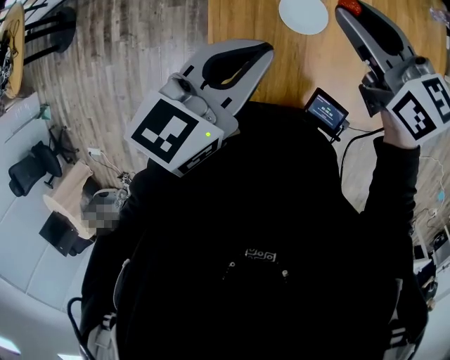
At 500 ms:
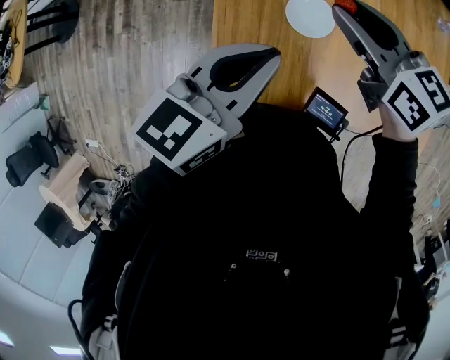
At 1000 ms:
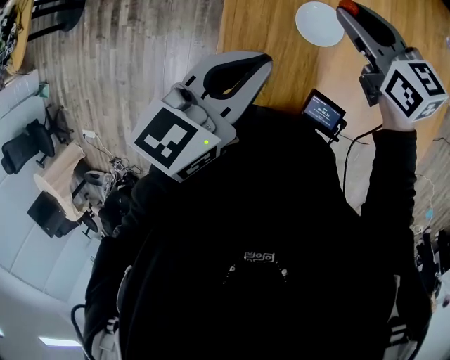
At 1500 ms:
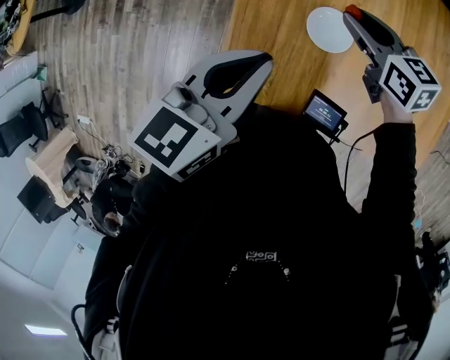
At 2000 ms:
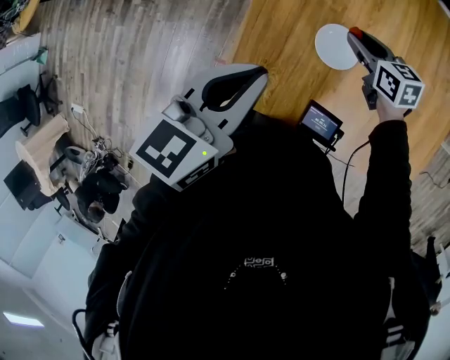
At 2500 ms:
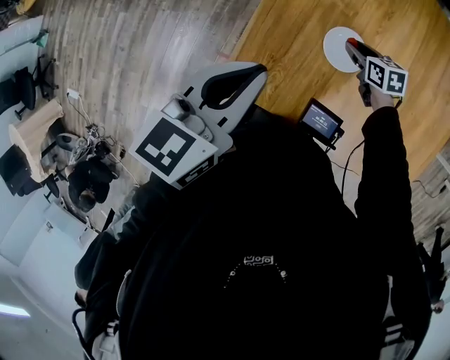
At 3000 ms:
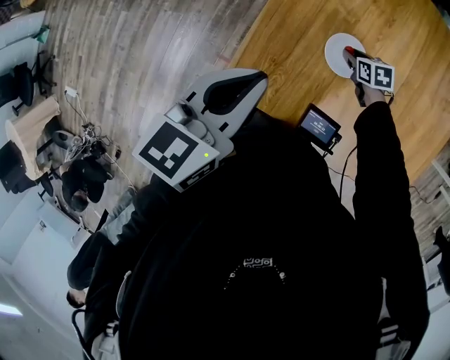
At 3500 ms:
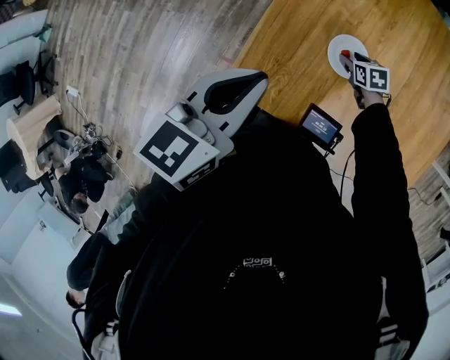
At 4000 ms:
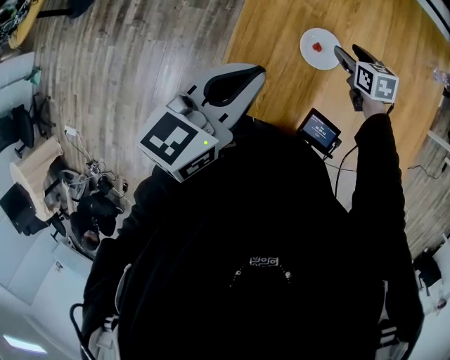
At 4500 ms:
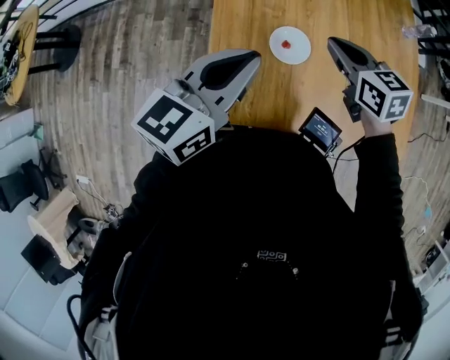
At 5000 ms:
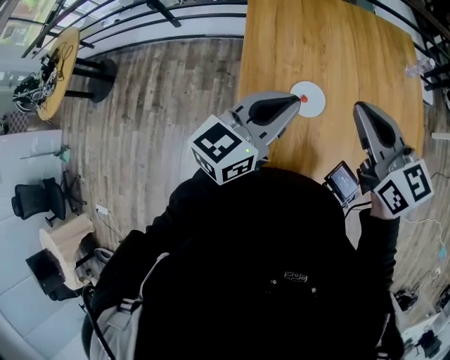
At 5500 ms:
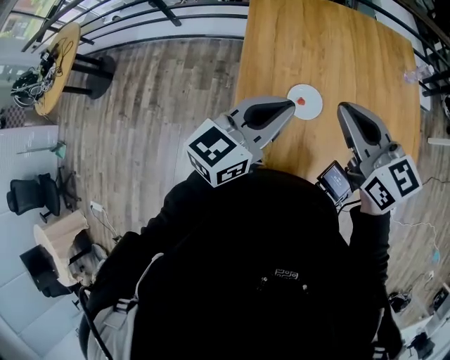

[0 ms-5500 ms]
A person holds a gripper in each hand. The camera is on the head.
0 ms to 2000 ms: The right gripper is displaced downward by some 15 cm, and rotates roughly 20 degrees. Meanwhile the left gripper moves backward, roughly 5 cm.
2000 ms to 3500 ms: The right gripper is displaced downward by approximately 20 cm, swivels roughly 20 degrees, and opens.
3500 ms to 5500 ms: The left gripper moves to the right, forward and upward, about 10 cm, and turns by some 30 degrees; the right gripper shifts roughly 40 cm upward, tilts its fingers roughly 50 degrees upward, and closes.

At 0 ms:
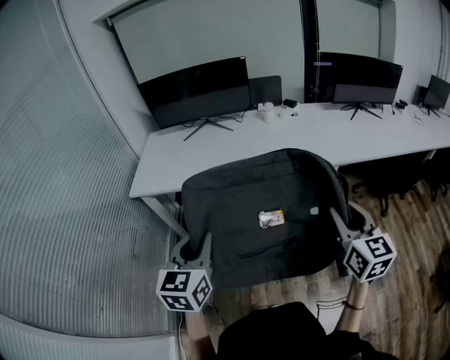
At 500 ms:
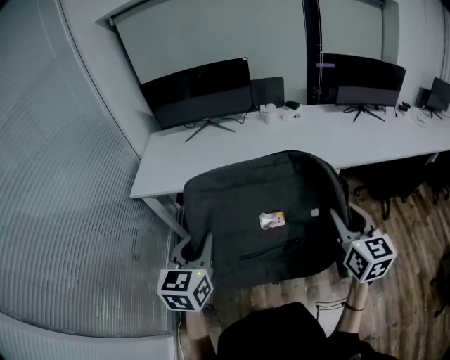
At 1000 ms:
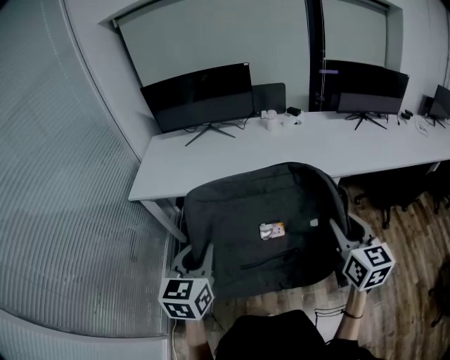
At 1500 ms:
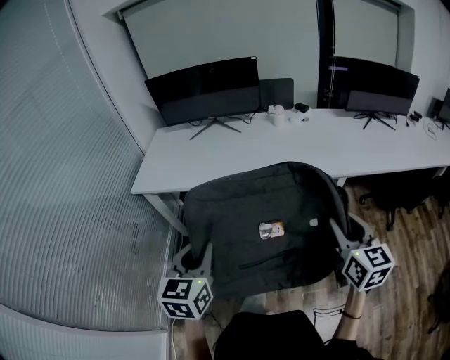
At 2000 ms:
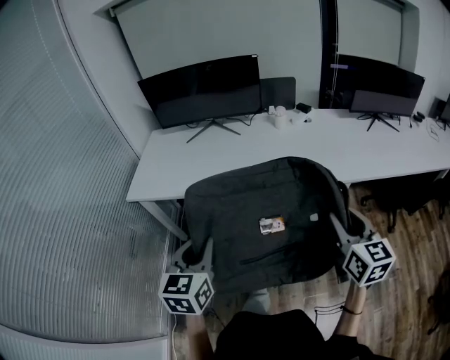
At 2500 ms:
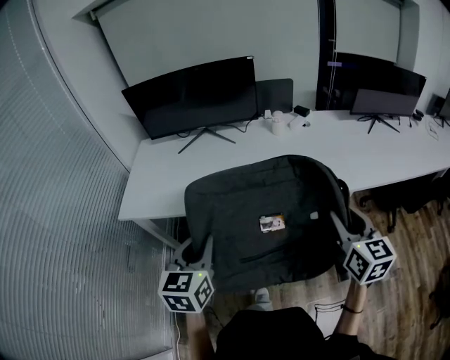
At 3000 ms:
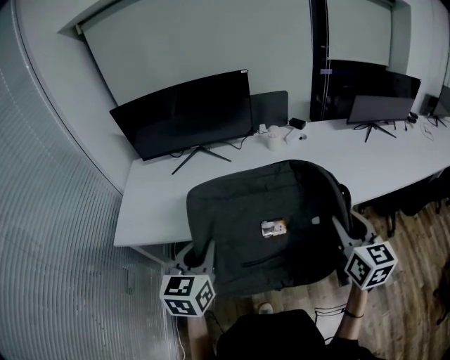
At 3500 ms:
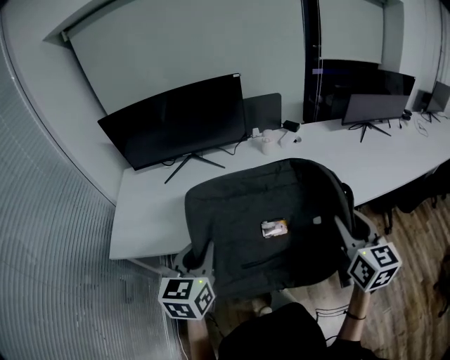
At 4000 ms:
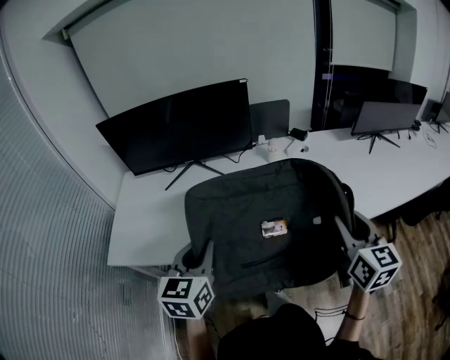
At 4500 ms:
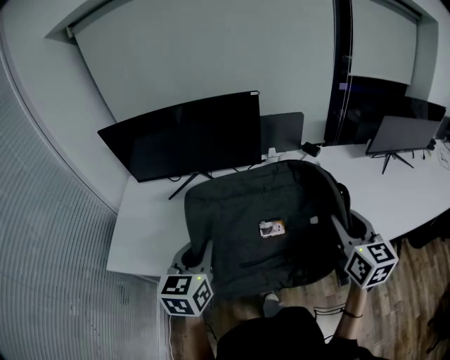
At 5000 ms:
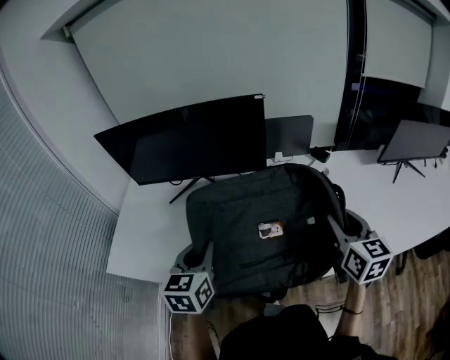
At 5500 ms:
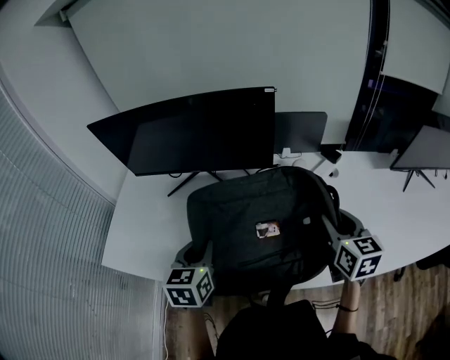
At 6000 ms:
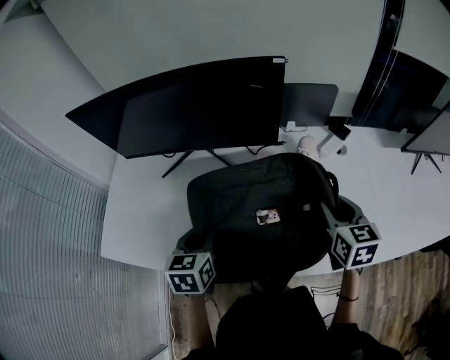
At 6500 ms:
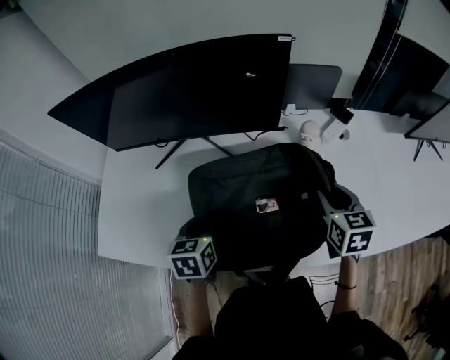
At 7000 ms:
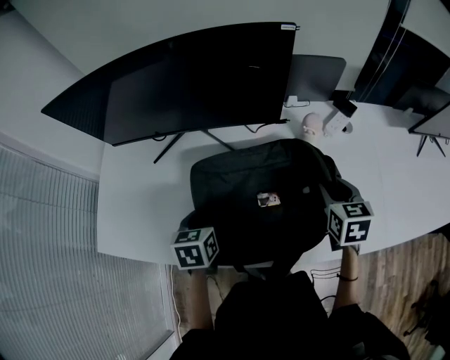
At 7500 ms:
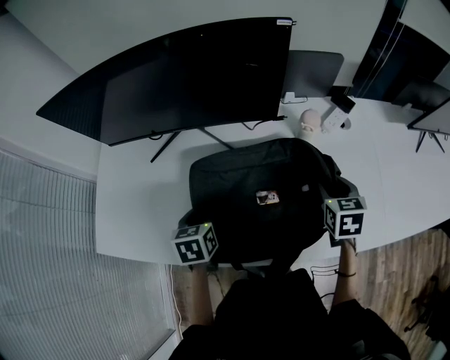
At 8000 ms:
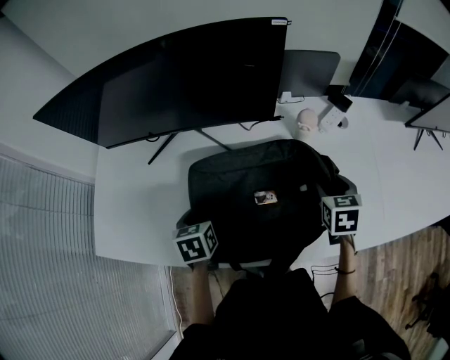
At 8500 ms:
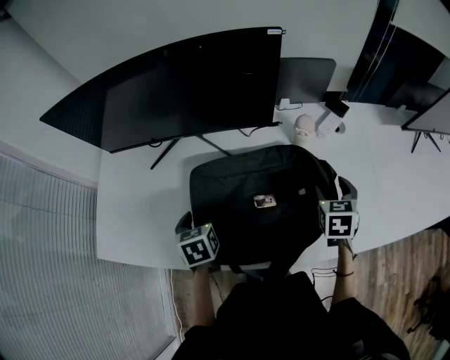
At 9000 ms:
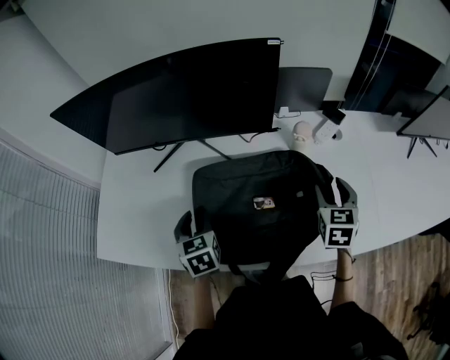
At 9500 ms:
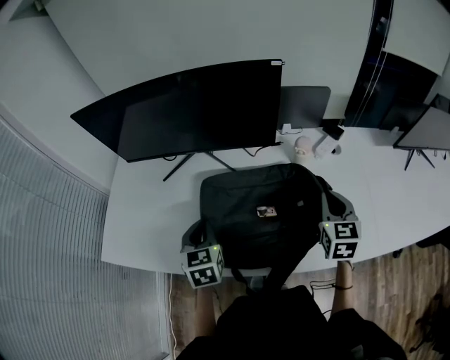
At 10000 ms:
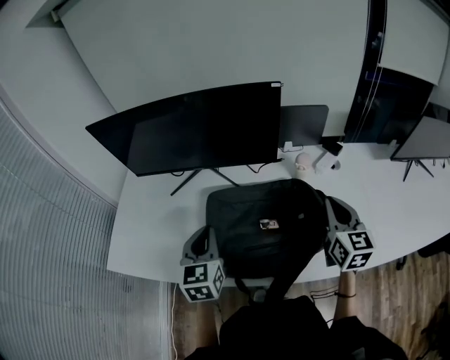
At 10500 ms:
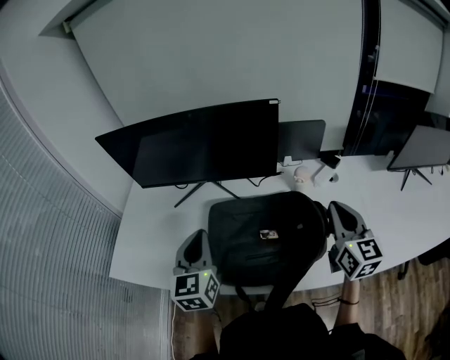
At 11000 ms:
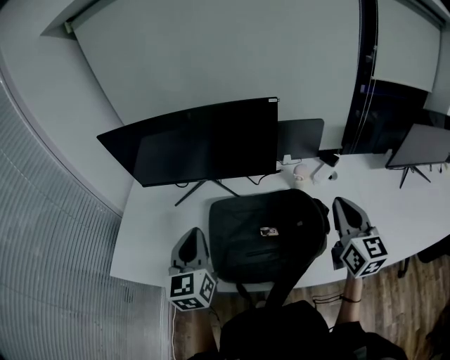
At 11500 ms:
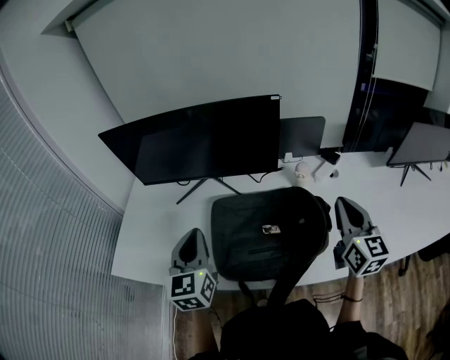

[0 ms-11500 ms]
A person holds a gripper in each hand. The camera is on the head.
0 ms to 2000 ms: Both grippers travel together forward, roughly 10 cm.
2000 ms to 4000 ms: Both grippers move forward, approximately 25 cm.
4000 ms to 6000 ms: The left gripper moves forward and downward, roughly 25 cm, and swivels about 20 degrees; the right gripper is displaced forward by some 30 cm, and rotates approximately 20 degrees.
6000 ms to 7500 ms: Both grippers travel together downward, about 10 cm. The left gripper opens.
7500 ms to 9500 ms: The grippers both shift upward by about 10 cm. The left gripper turns by some 20 degrees, and closes, while the right gripper swivels approximately 20 degrees, and closes up.
9500 ms to 11500 ms: The left gripper shifts roughly 15 cm upward, and changes its angle by about 20 degrees. The right gripper is displaced upward and backward by some 15 cm, and turns by approximately 30 degrees.

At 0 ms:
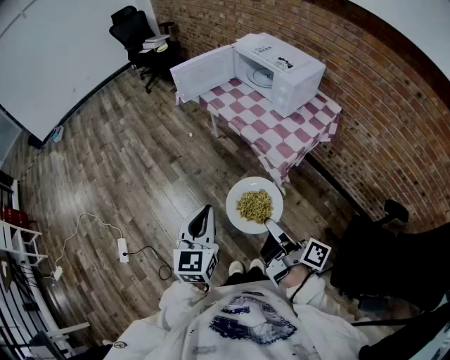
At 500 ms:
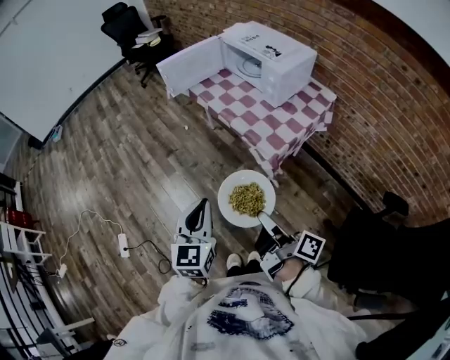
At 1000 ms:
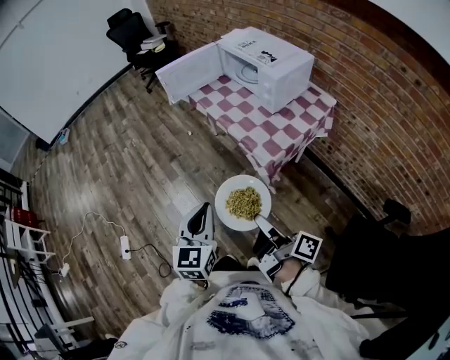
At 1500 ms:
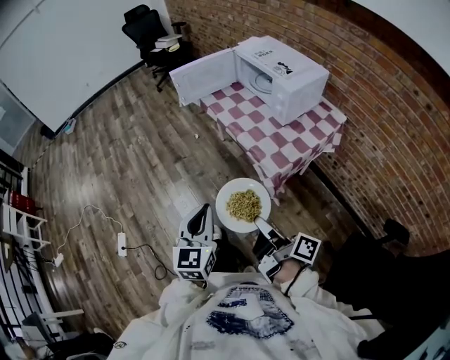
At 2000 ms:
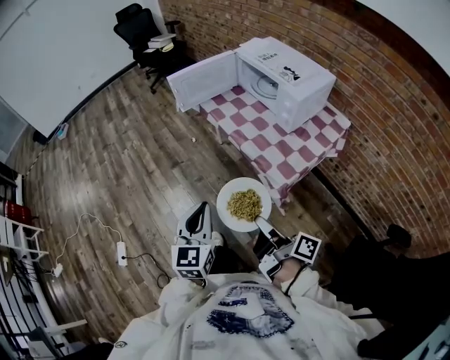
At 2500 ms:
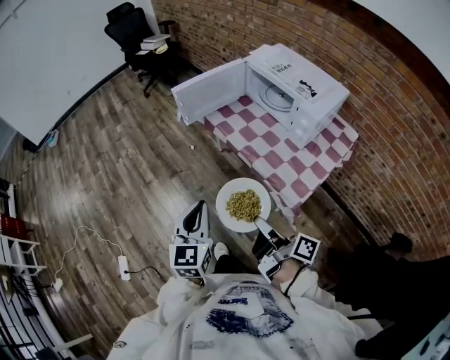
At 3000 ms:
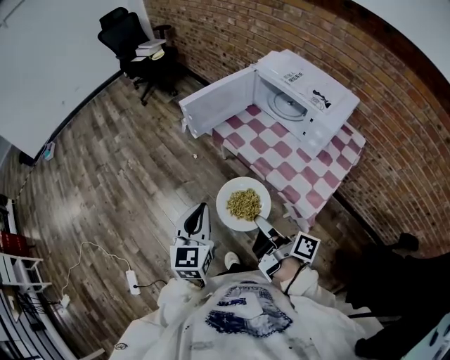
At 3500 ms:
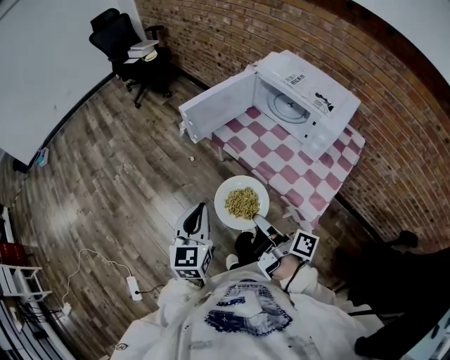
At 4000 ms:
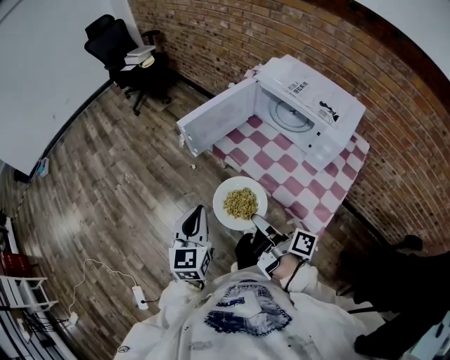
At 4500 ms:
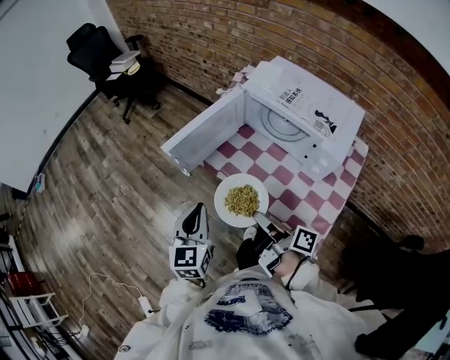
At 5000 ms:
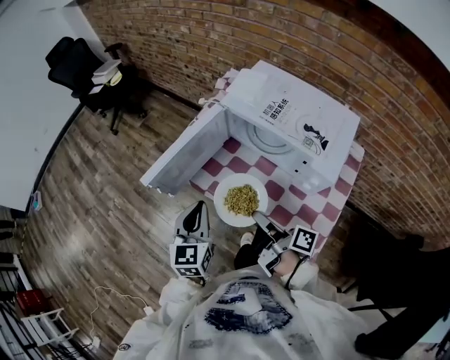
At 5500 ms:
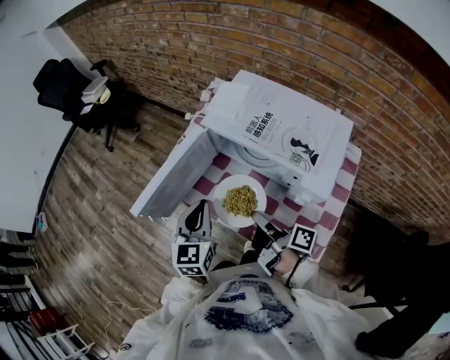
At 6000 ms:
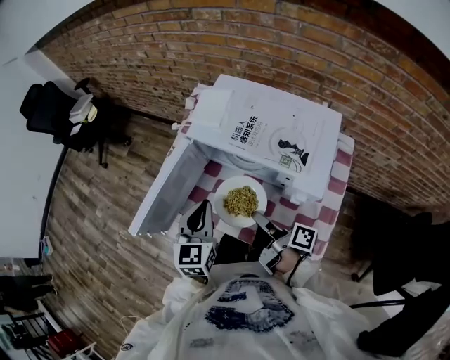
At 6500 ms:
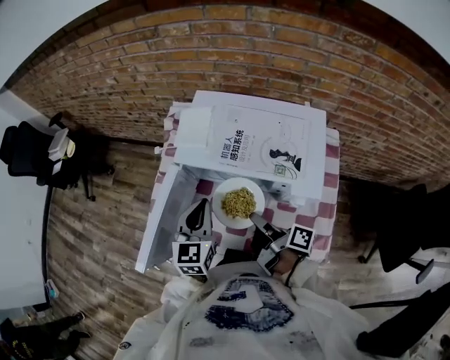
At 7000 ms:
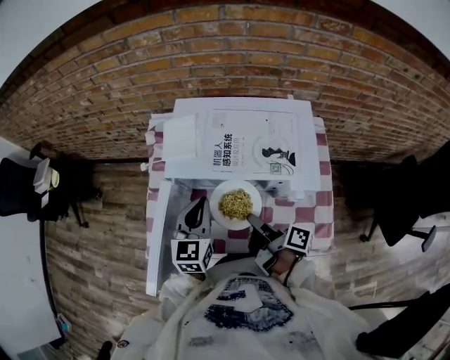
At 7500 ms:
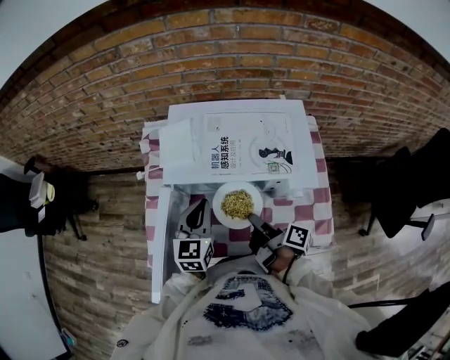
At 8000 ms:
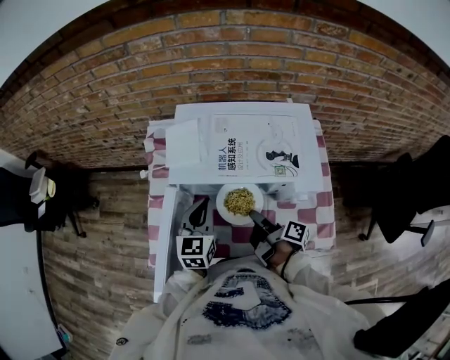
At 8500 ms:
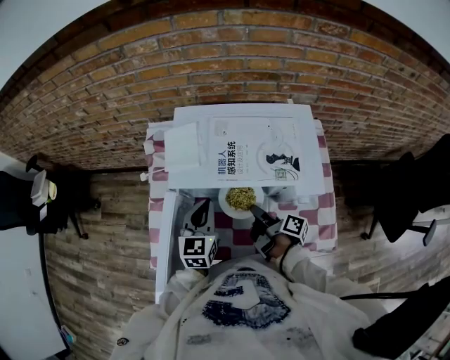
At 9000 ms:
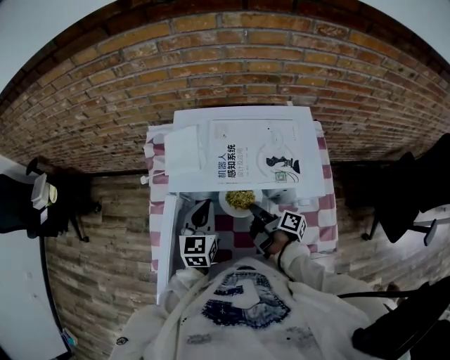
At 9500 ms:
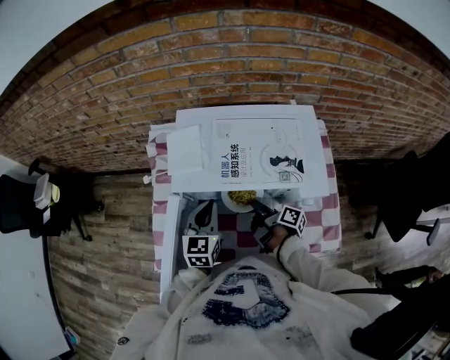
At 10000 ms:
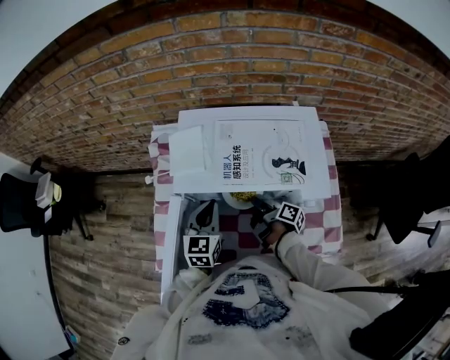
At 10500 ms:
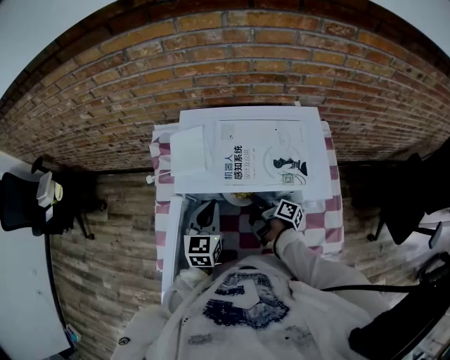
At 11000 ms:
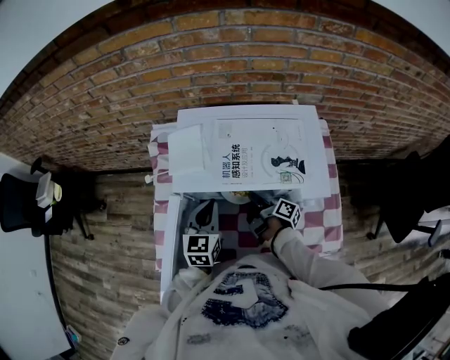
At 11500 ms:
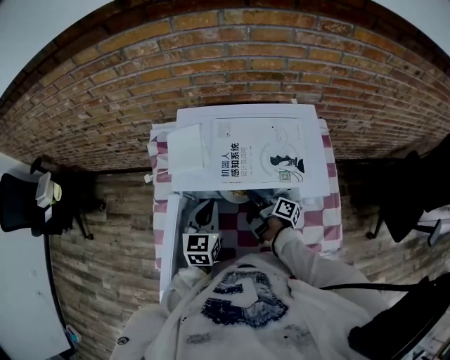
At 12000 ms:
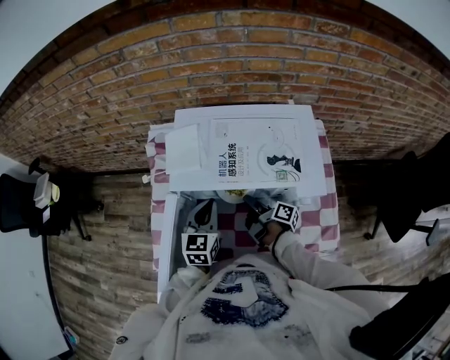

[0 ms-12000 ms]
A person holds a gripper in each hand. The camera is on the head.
0 ms to 2000 ms: The left gripper shifts by some 10 cm.
2000 ms to 4000 ms: The left gripper changes place by some 35 cm.
4000 ms to 6000 ms: The left gripper shifts by some 35 cm, and turns by some 20 degrees.
6000 ms to 8000 ms: The left gripper shifts by approximately 15 cm, and turns by roughly 30 degrees.
